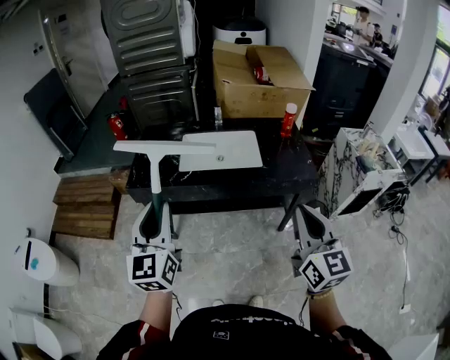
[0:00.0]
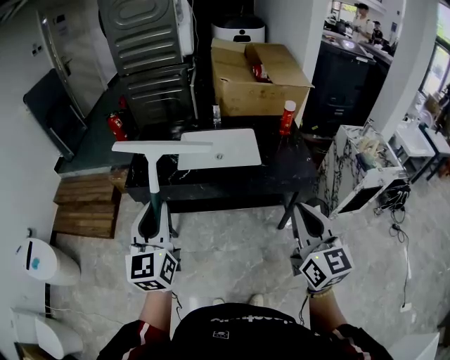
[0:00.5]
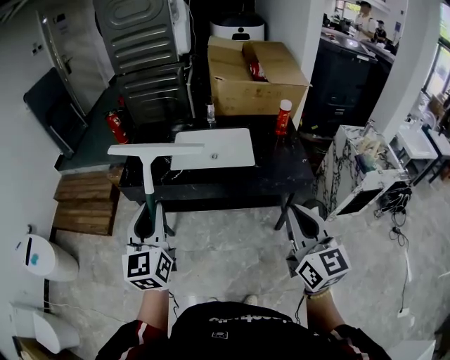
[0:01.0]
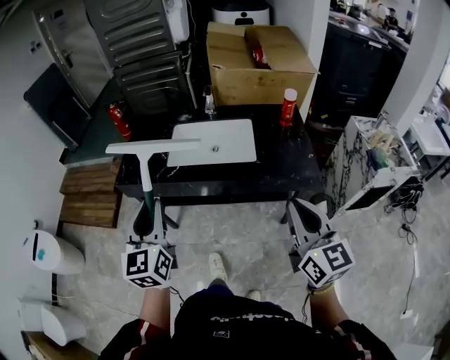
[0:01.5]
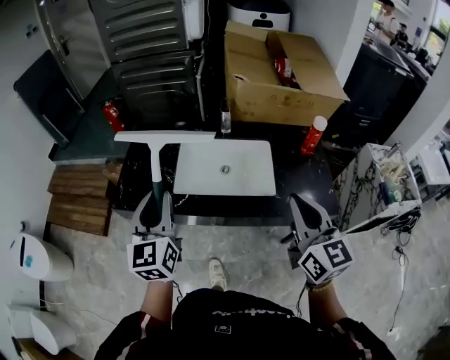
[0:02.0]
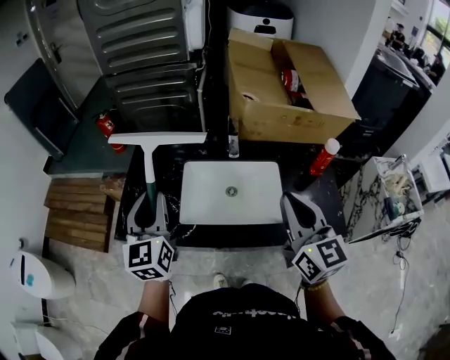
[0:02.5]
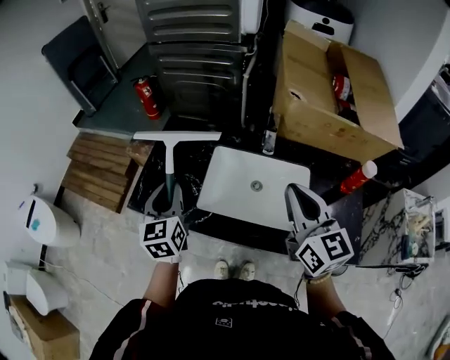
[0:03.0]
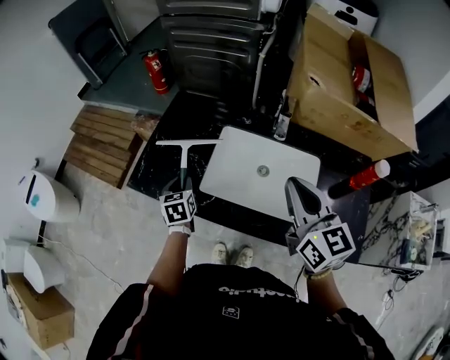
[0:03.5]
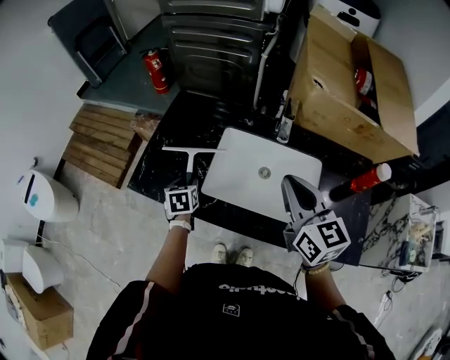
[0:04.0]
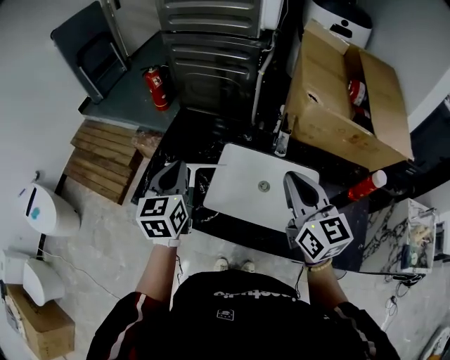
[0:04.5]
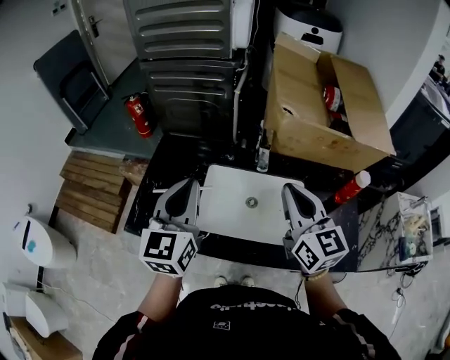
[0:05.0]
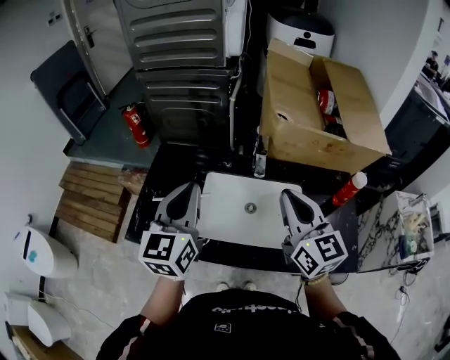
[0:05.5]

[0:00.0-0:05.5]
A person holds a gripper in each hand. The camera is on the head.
0:00.0 to 0:02.0: The grippers both shift forward by roughly 25 cm.
0:02.0 to 0:03.5: The left gripper moves downward and forward, about 35 cm, and tilts its fingers some 40 degrees downward. Meanwhile the right gripper moves forward, about 20 cm.
0:03.5 to 0:05.5: The left gripper goes some 30 cm upward, and angles its fingers upward, by about 40 degrees; the right gripper goes approximately 5 cm upward.

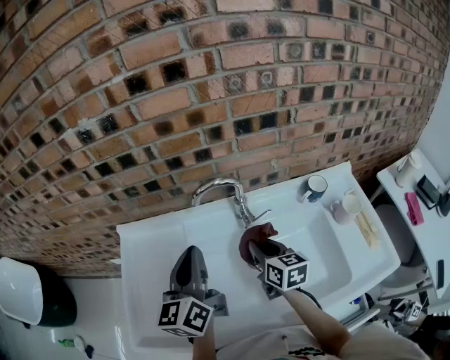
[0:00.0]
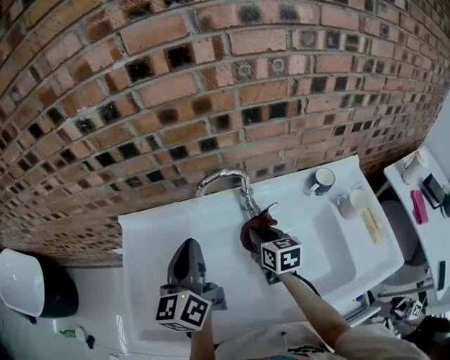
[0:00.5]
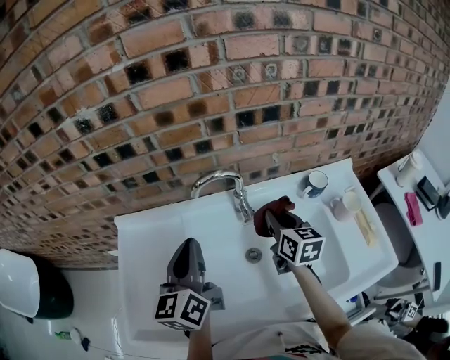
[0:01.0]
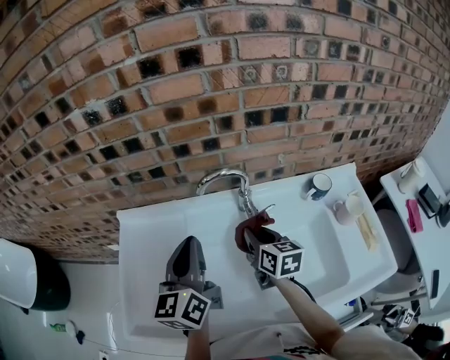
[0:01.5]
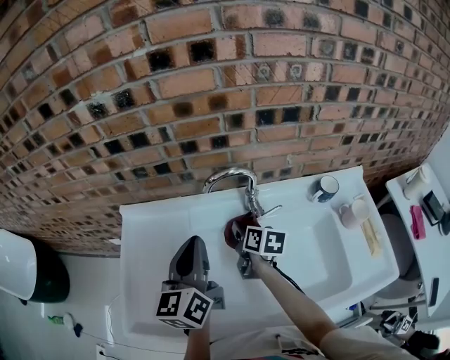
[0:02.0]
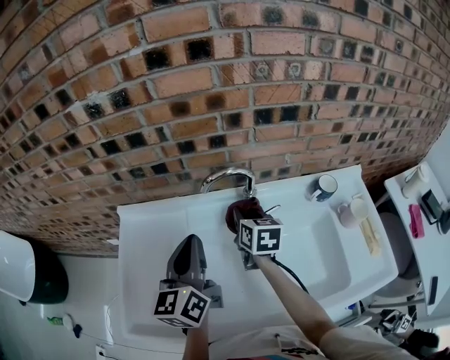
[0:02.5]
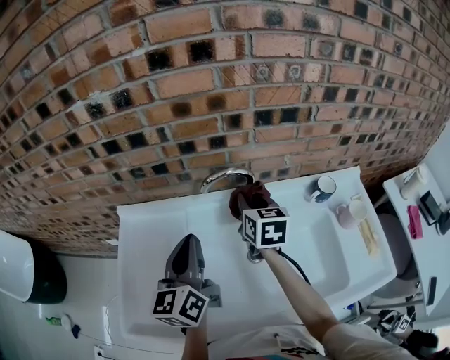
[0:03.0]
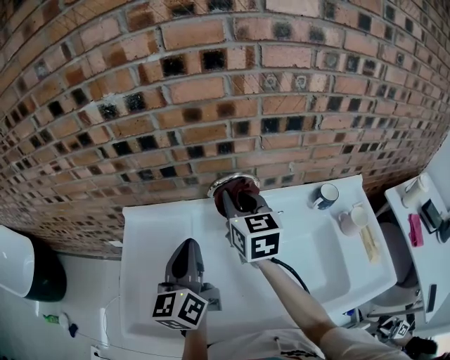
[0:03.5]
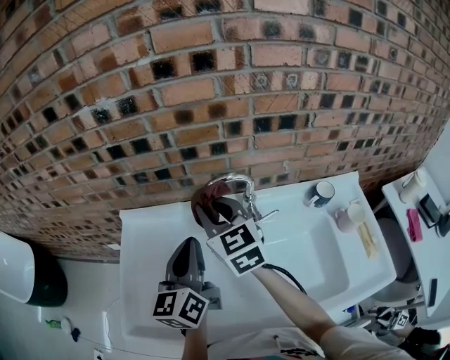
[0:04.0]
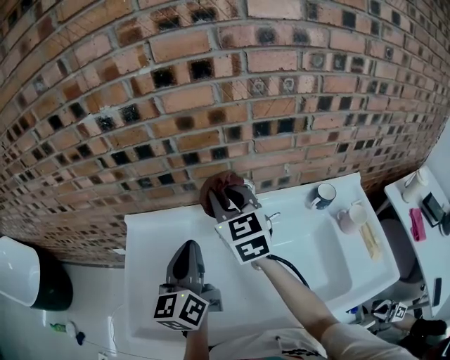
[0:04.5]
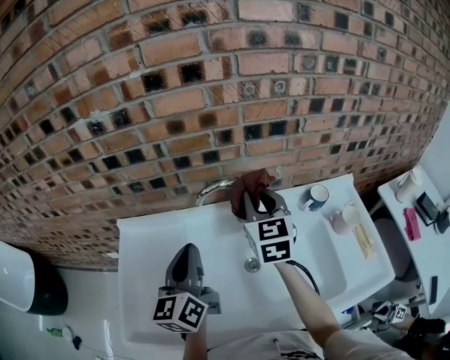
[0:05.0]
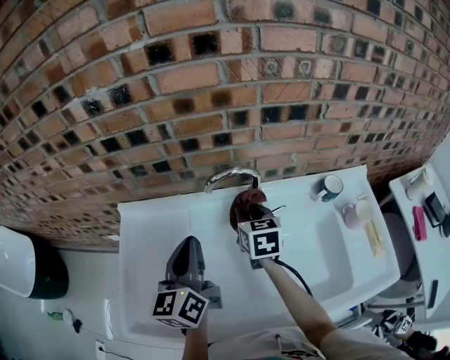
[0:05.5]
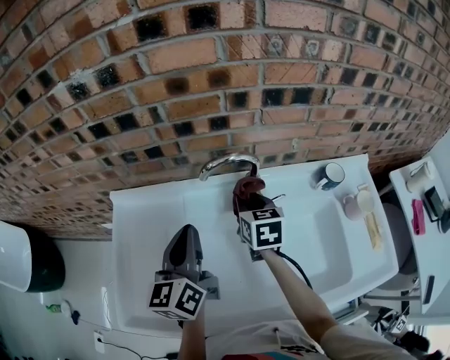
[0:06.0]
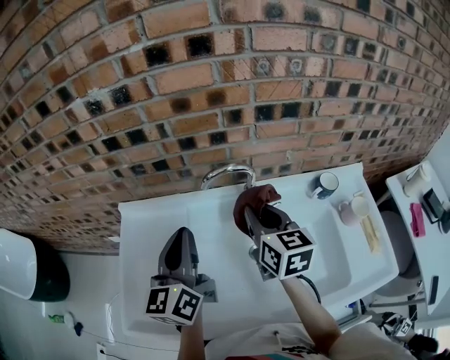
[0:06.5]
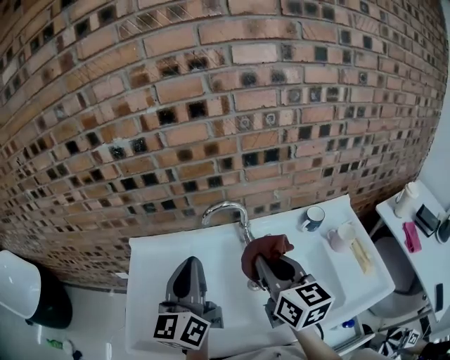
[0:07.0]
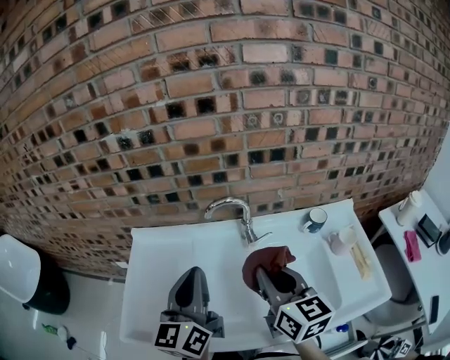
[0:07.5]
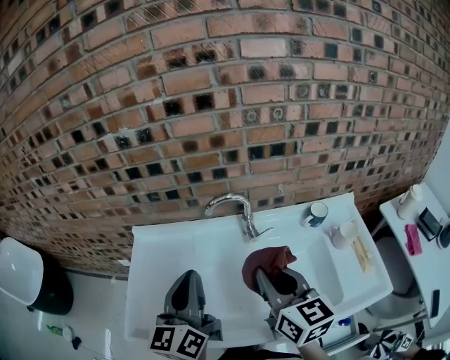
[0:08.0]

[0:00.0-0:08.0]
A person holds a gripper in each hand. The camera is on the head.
0:00.0 to 0:02.0: The right gripper is displaced forward by approximately 5 cm.
0:02.0 to 0:04.0: The right gripper moves upward and to the left, about 20 cm, and rotates around the line of its fingers by roughly 50 degrees, counterclockwise from behind.
0:04.0 to 0:06.0: The right gripper heads downward and to the right, covering approximately 20 cm, and turns by some 30 degrees.
0:06.0 to 0:08.0: The right gripper goes about 30 cm backward and upward, and rotates about 30 degrees. The left gripper travels backward and upward by approximately 15 cm.

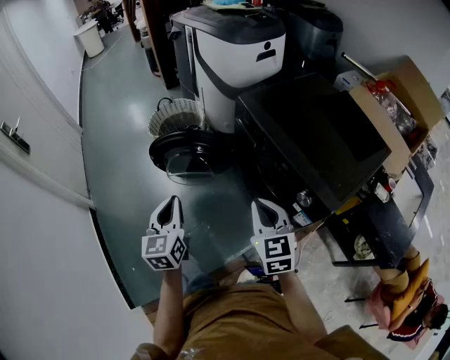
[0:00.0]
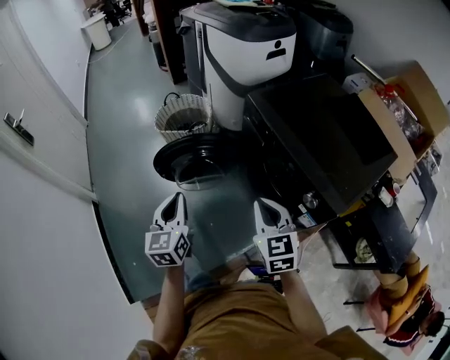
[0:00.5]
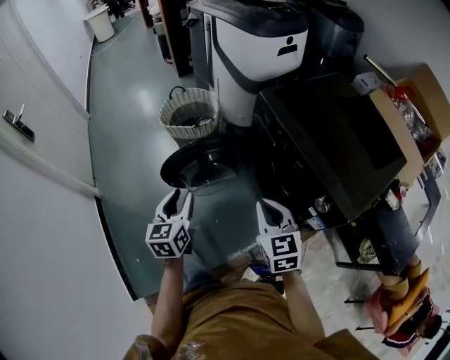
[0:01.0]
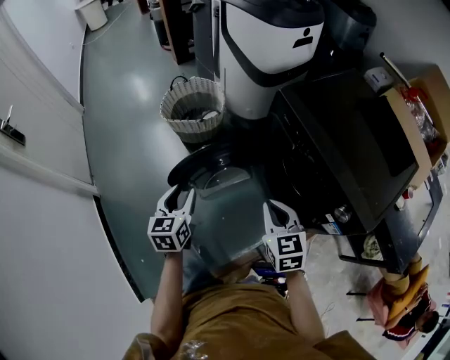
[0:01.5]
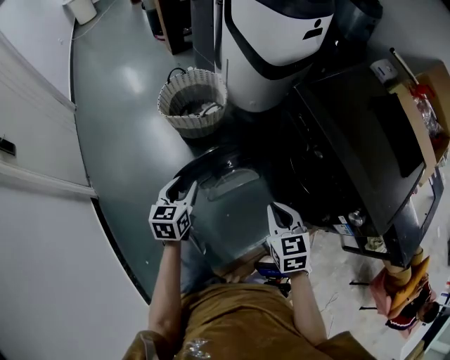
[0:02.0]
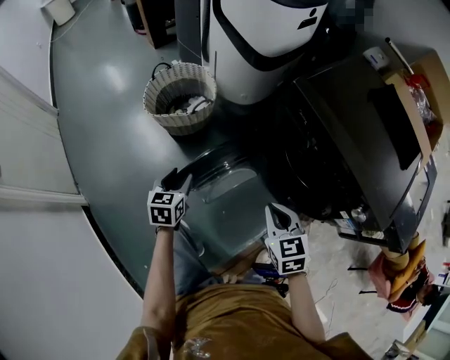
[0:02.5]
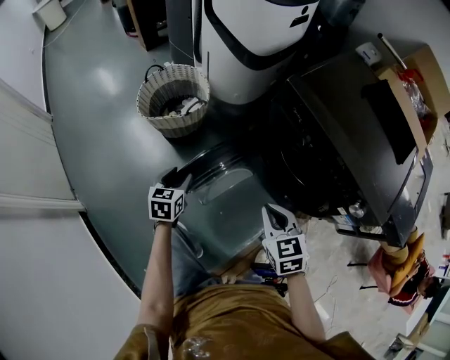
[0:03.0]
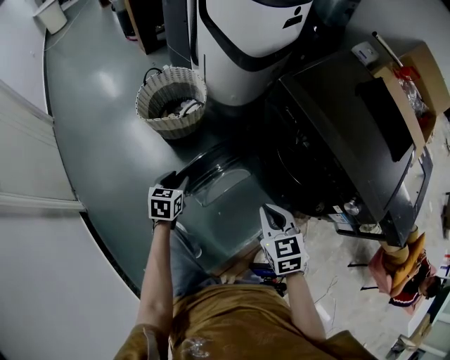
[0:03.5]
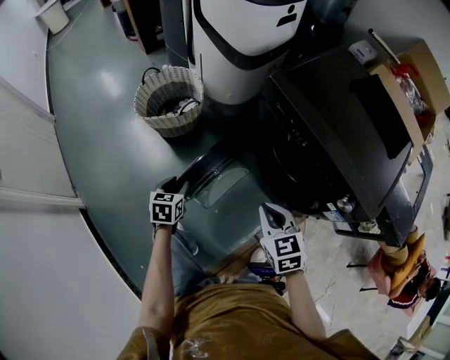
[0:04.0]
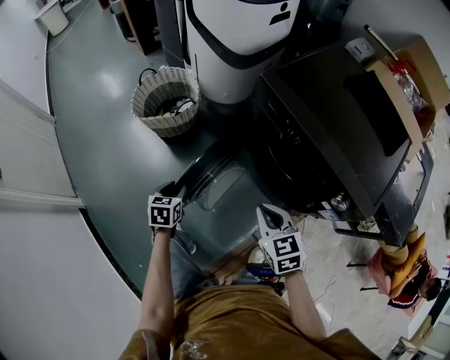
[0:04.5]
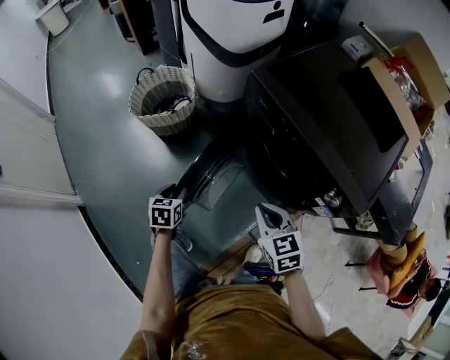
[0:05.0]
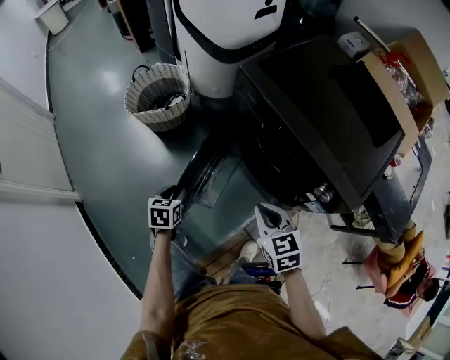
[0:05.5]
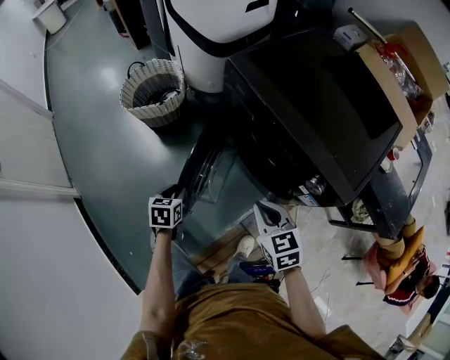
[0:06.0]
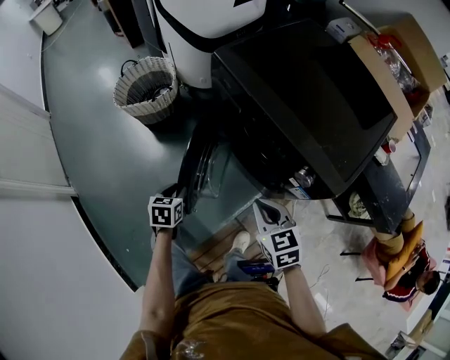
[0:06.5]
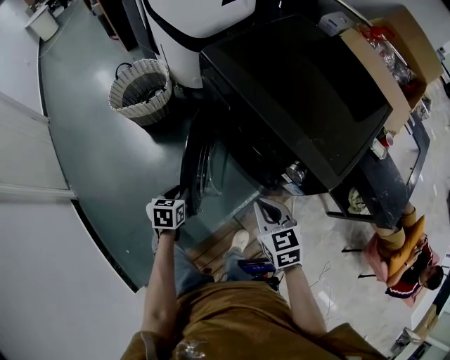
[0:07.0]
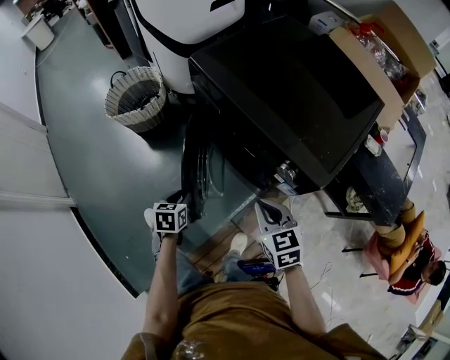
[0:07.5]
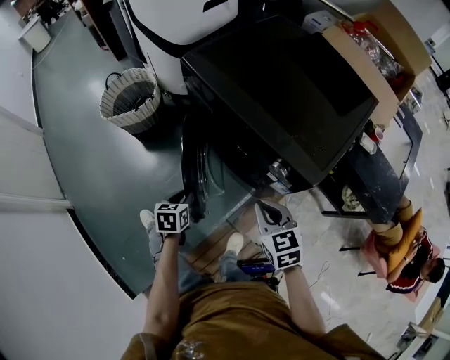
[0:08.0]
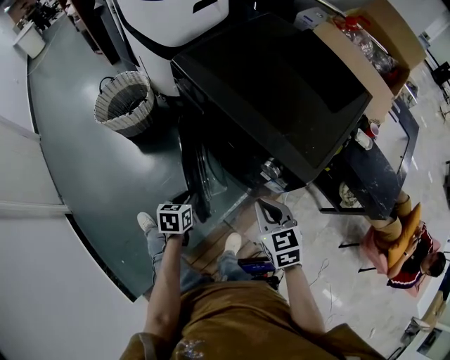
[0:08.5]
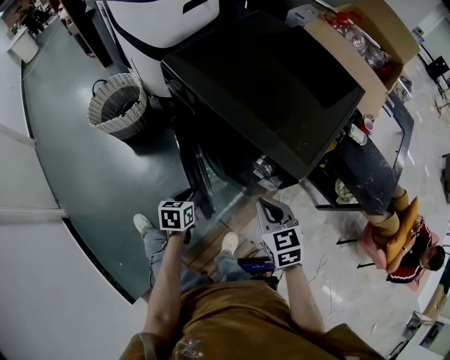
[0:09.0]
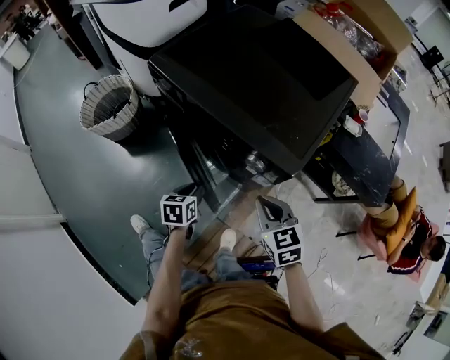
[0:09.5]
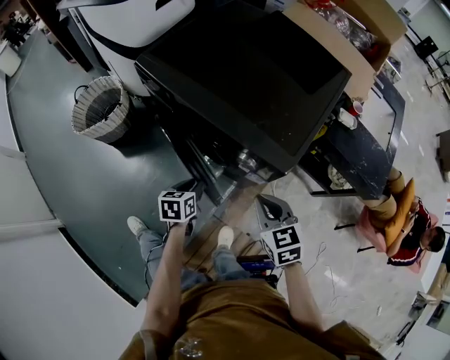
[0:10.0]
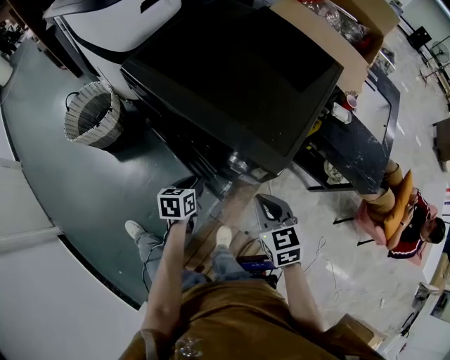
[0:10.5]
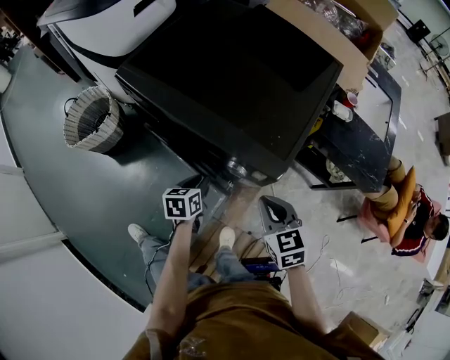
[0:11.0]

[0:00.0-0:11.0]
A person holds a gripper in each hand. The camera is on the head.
0:00.0 to 0:02.0: The left gripper heads forward, downward and to the left, covering approximately 25 cm, changes its angle by approximately 20 degrees, and opens up, while the right gripper shifts roughly 20 cm downward, forward and to the left.
0:02.0 to 0:03.5: The left gripper travels downward and forward by about 10 cm.
0:03.5 to 0:05.5: Both grippers travel together to the right and backward, approximately 15 cm.
0:05.5 to 0:07.5: Both grippers travel together to the right, some 15 cm.
0:07.5 to 0:09.0: The right gripper heads to the right, covering some 5 cm; the left gripper shifts approximately 10 cm to the right.
0:09.0 to 0:11.0: The right gripper is displaced to the right by about 5 cm. The left gripper heads to the right and forward, covering some 15 cm.

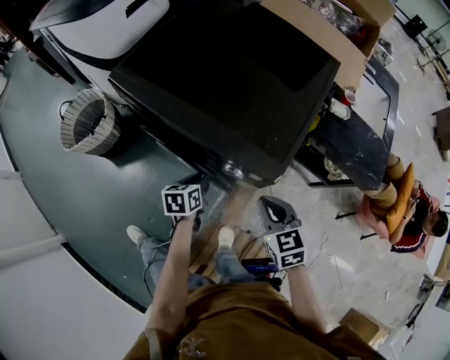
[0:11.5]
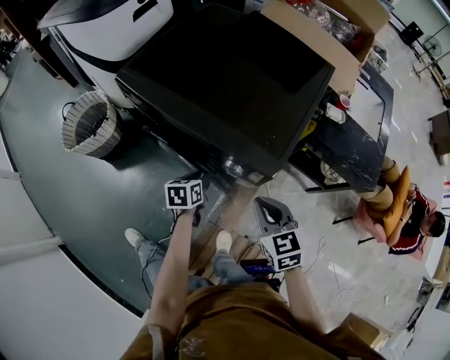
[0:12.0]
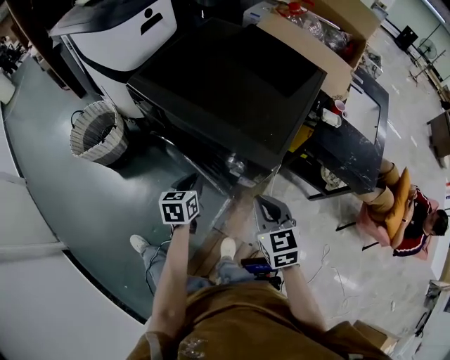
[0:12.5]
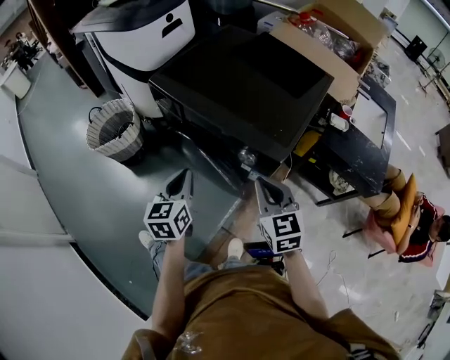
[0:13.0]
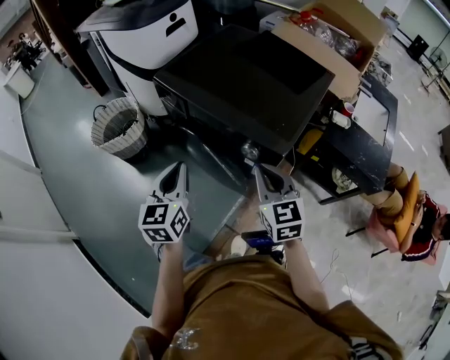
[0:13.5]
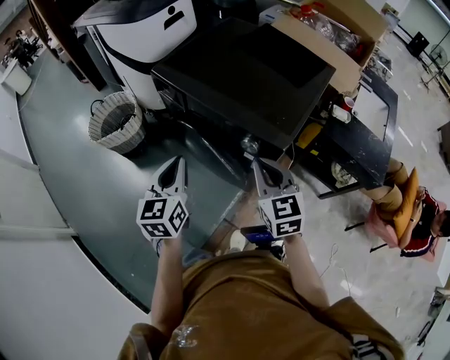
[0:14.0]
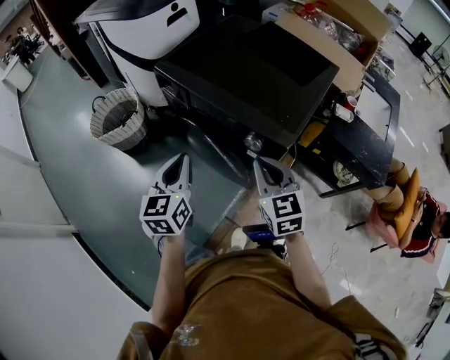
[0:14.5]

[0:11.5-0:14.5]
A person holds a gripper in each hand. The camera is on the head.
0:11.5 to 0:13.0: The left gripper is displaced upward, to the left and backward by approximately 25 cm, turns by roughly 30 degrees, and closes up; the right gripper heads upward and to the left, covering roughly 10 cm.
0:13.0 to 0:14.5: The left gripper moves some 5 cm.
